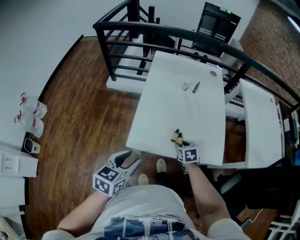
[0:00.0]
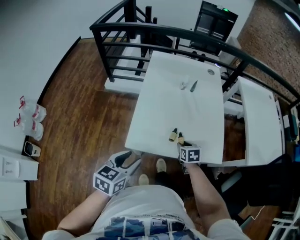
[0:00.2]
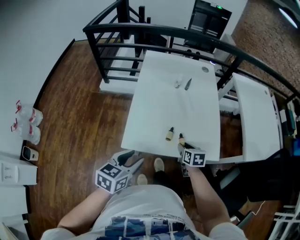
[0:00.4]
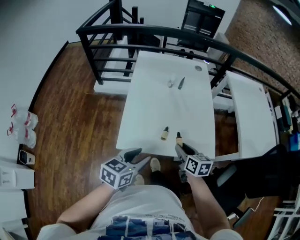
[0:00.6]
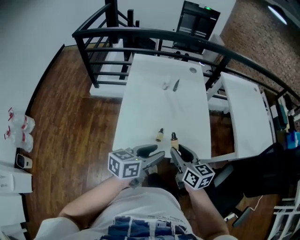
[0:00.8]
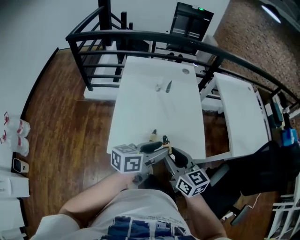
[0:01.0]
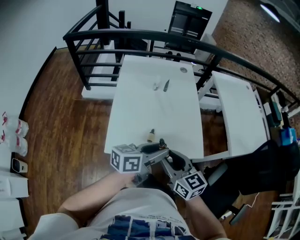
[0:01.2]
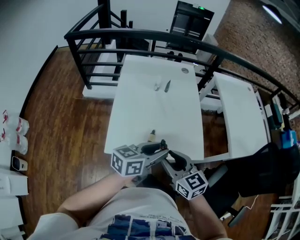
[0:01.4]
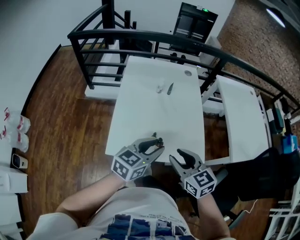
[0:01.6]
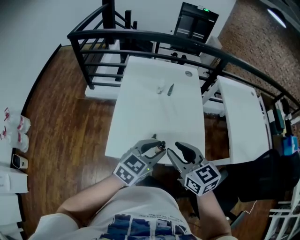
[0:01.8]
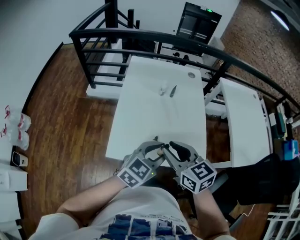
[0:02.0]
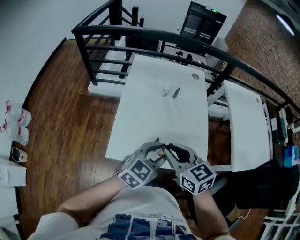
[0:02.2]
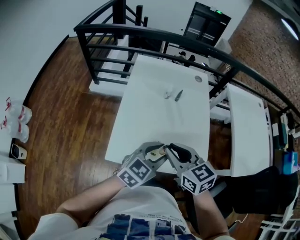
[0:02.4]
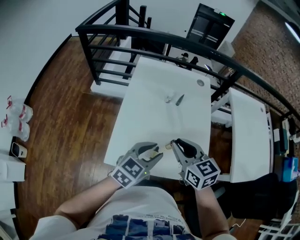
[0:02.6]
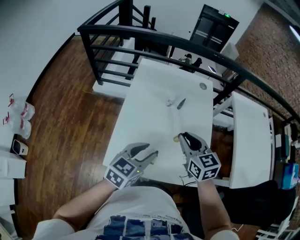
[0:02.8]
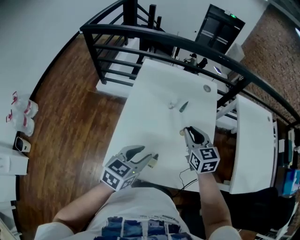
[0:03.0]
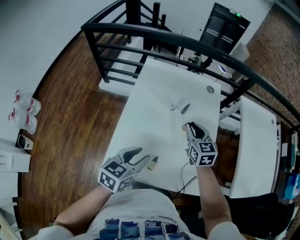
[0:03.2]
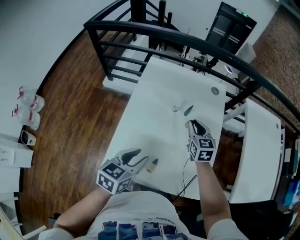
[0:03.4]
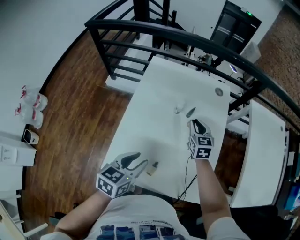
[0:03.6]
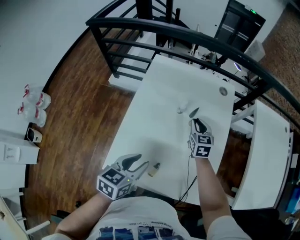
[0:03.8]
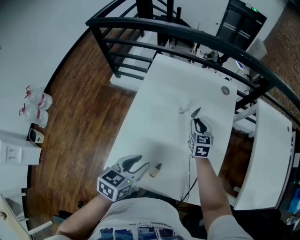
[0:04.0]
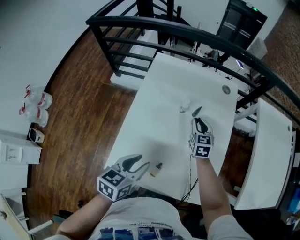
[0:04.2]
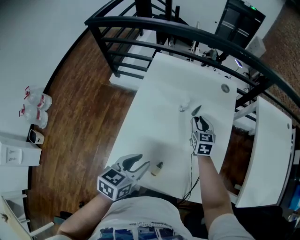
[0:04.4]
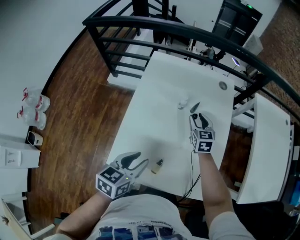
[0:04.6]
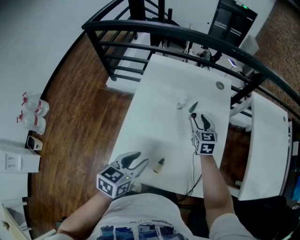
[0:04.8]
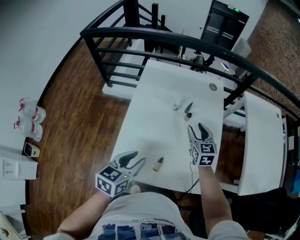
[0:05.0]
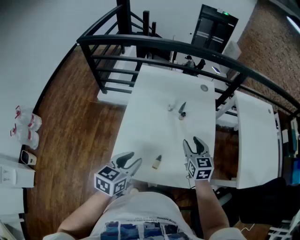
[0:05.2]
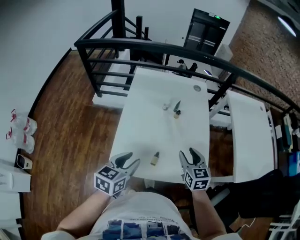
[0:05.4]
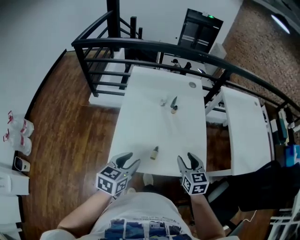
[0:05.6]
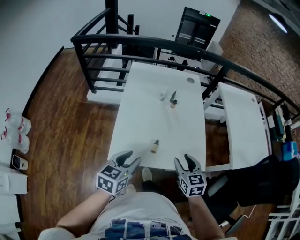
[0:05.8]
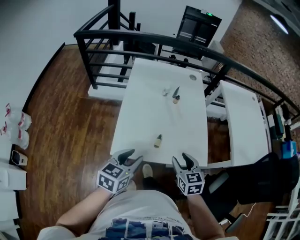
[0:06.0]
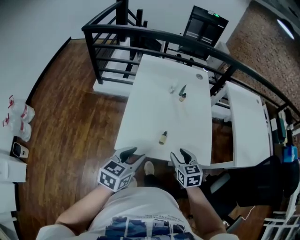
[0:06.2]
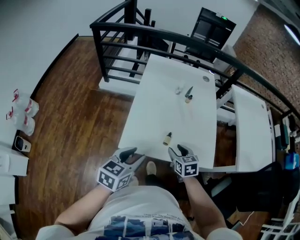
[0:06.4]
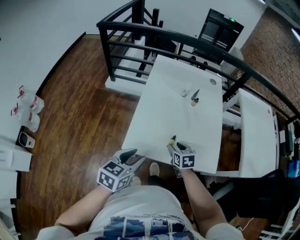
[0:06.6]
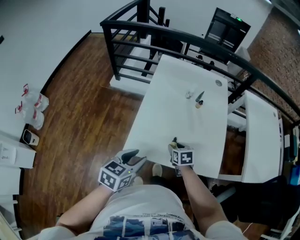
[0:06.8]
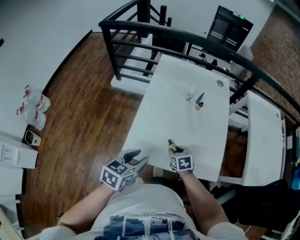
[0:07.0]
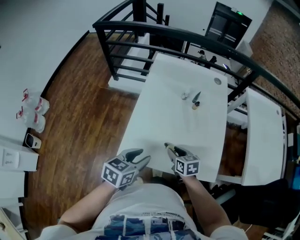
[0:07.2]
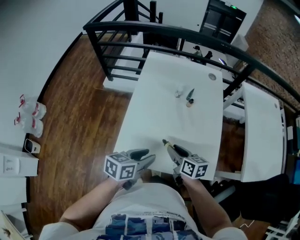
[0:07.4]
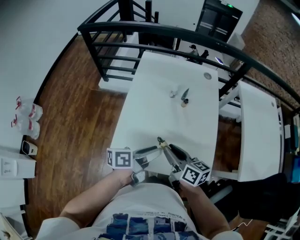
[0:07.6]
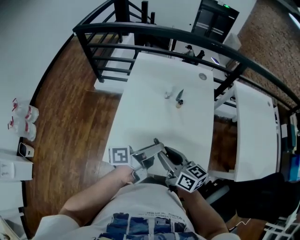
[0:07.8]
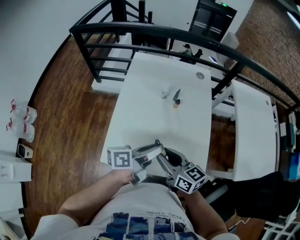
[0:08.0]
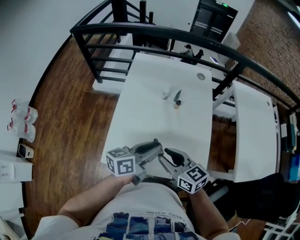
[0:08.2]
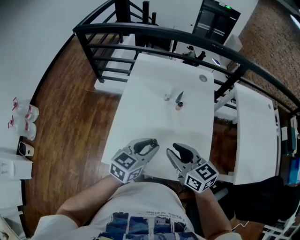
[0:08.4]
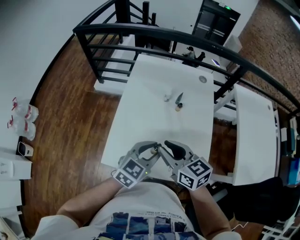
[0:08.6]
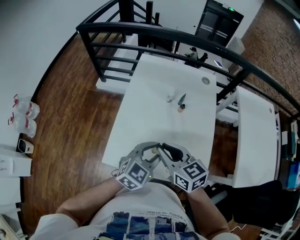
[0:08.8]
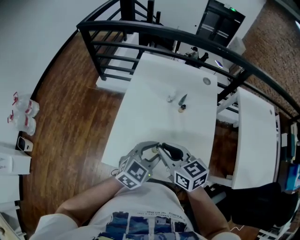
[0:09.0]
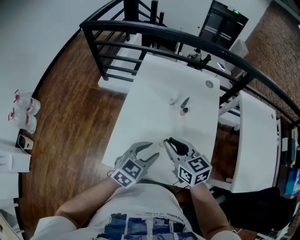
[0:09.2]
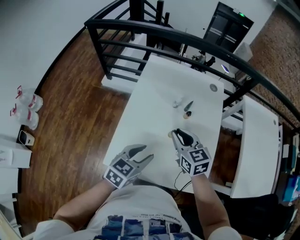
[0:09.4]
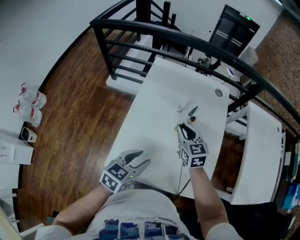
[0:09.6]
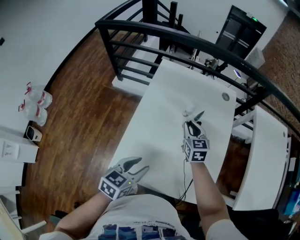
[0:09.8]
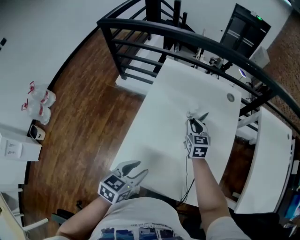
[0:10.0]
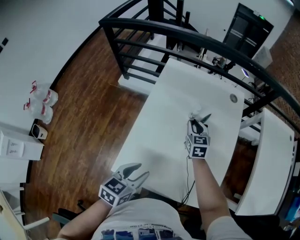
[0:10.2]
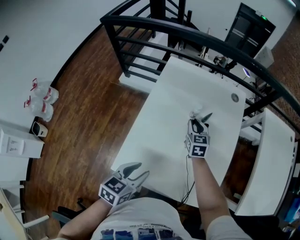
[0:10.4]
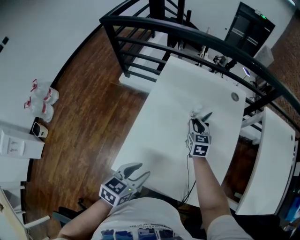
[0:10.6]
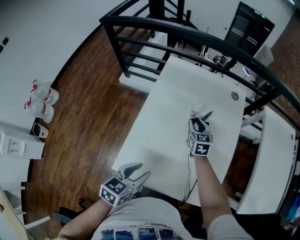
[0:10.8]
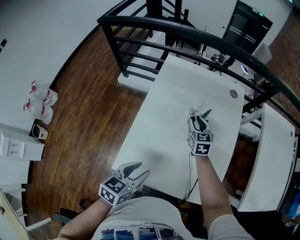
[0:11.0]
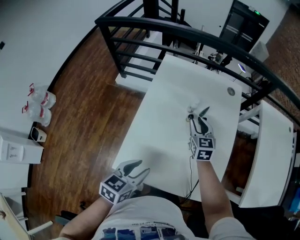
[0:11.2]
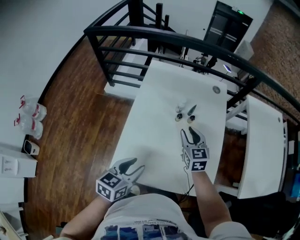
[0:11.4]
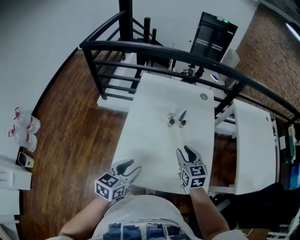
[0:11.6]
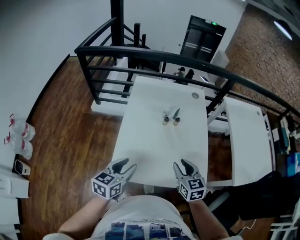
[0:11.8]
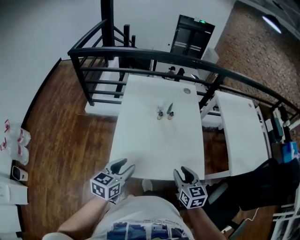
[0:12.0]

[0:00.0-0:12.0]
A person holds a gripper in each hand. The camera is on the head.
0:00.0 to 0:01.6: The right gripper goes some 25 cm upward, and swivels about 30 degrees; the left gripper shifts some 20 cm to the right and forward, and turns by roughly 30 degrees.
0:01.6 to 0:03.0: The left gripper is displaced forward and to the left by approximately 15 cm. Meanwhile the right gripper travels forward by about 30 cm.
0:03.0 to 0:04.4: The left gripper changes place by about 5 cm. The right gripper is displaced forward and downward by approximately 20 cm.
0:04.4 to 0:06.0: The right gripper heads backward, covering roughly 40 cm, while the left gripper travels backward by roughly 20 cm.
0:06.0 to 0:07.6: The right gripper heads forward, covering approximately 15 cm, moves about 15 cm downward and comes back, and swivels some 50 degrees; the left gripper shifts approximately 15 cm forward and to the right, and rolls counterclockwise, seen from behind, by about 50 degrees.
0:07.6 to 0:09.0: The left gripper shifts by approximately 5 cm, and rolls clockwise, seen from behind, by approximately 70 degrees. Meanwhile the right gripper shifts by some 5 cm, and turns by approximately 30 degrees.
0:09.0 to 0:10.4: The left gripper moves to the left, some 10 cm, and changes its angle by approximately 30 degrees. Meanwhile the right gripper moves forward and downward, about 30 cm, and turns by approximately 30 degrees.
0:10.4 to 0:12.0: The right gripper shifts approximately 40 cm backward, and opens; the left gripper moves backward and upward, roughly 10 cm.

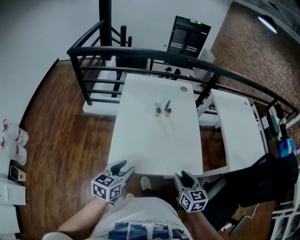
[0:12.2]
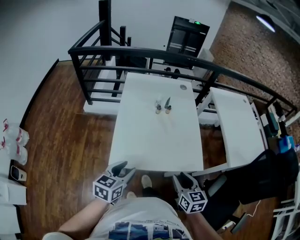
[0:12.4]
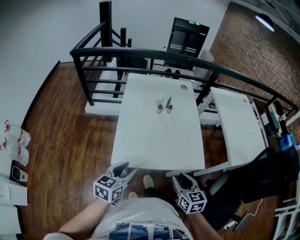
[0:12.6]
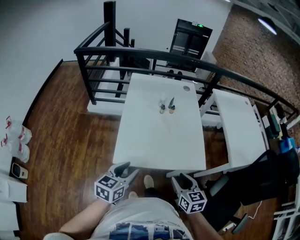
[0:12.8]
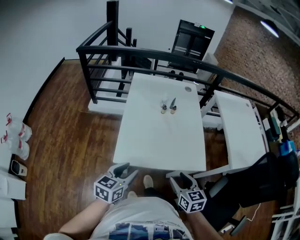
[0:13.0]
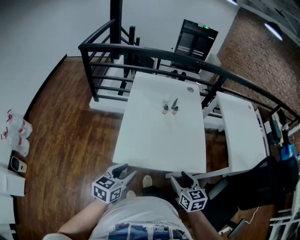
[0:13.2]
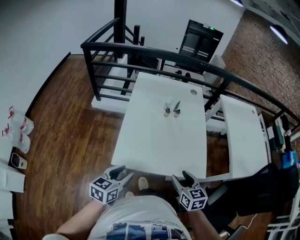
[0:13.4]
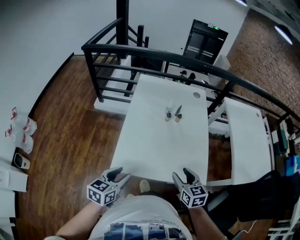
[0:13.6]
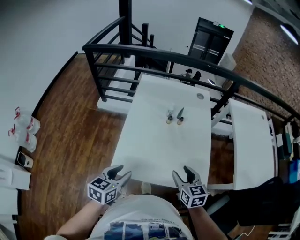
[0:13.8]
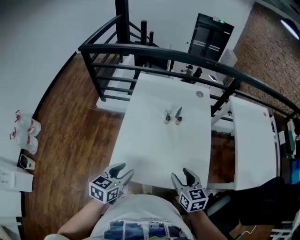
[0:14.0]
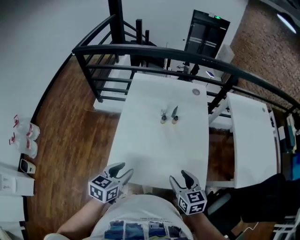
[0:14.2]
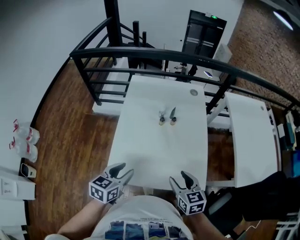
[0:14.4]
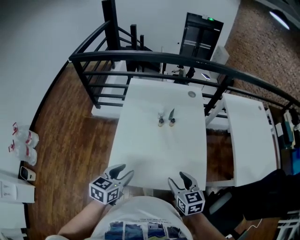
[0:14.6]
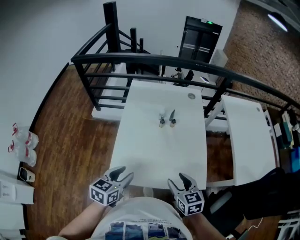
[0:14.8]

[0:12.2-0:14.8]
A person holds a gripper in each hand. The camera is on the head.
0:12.2 to 0:13.4: The left gripper moves approximately 5 cm.
0:13.4 to 0:14.8: Both grippers move forward, about 10 cm.

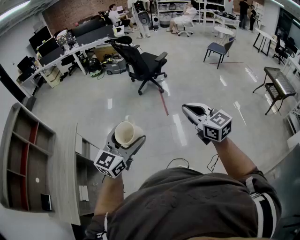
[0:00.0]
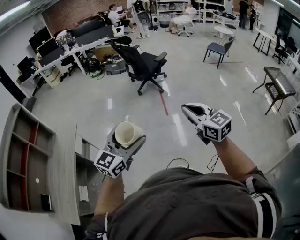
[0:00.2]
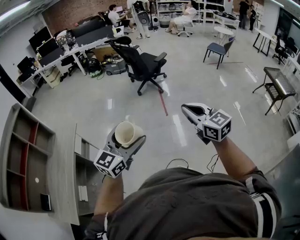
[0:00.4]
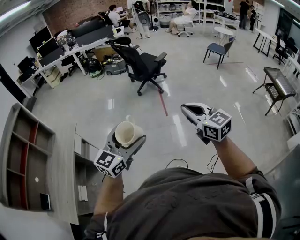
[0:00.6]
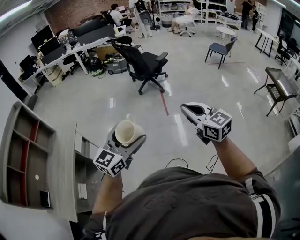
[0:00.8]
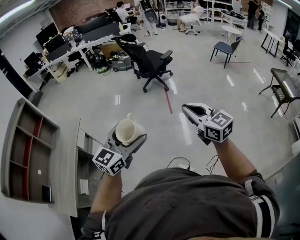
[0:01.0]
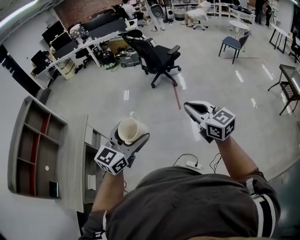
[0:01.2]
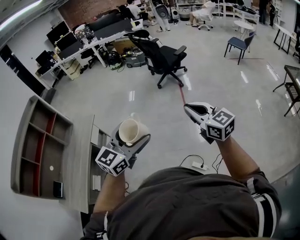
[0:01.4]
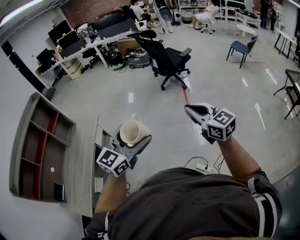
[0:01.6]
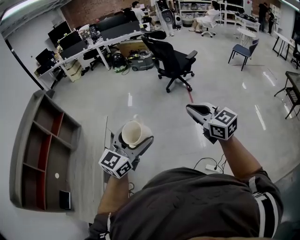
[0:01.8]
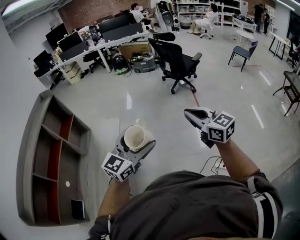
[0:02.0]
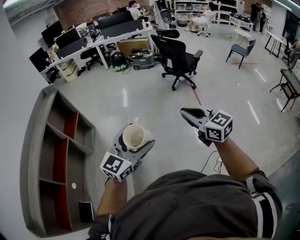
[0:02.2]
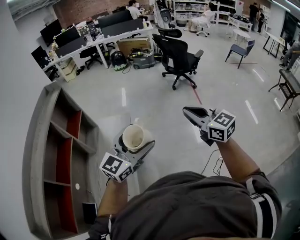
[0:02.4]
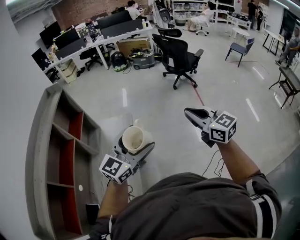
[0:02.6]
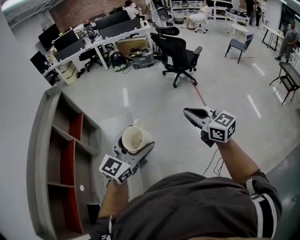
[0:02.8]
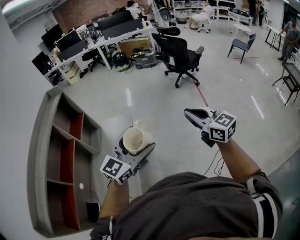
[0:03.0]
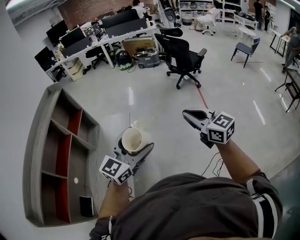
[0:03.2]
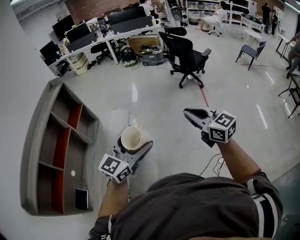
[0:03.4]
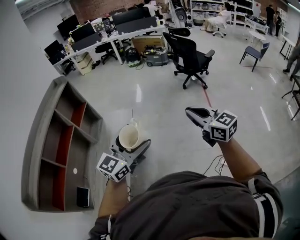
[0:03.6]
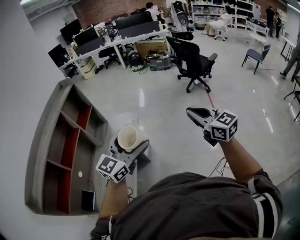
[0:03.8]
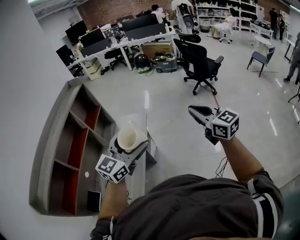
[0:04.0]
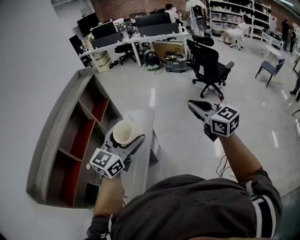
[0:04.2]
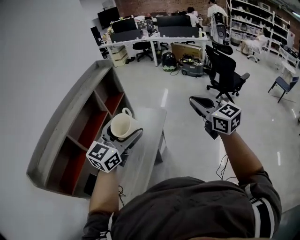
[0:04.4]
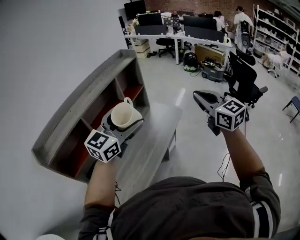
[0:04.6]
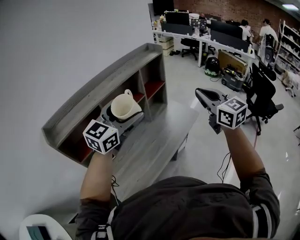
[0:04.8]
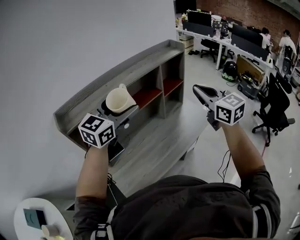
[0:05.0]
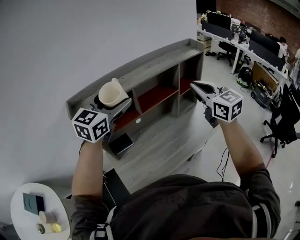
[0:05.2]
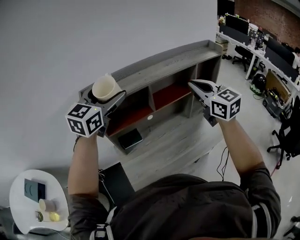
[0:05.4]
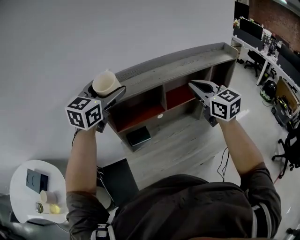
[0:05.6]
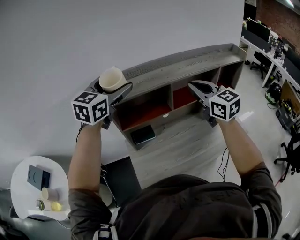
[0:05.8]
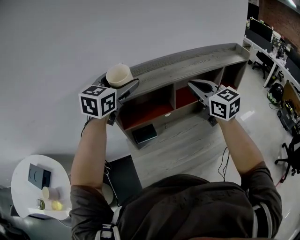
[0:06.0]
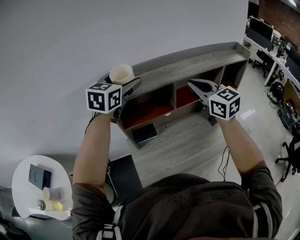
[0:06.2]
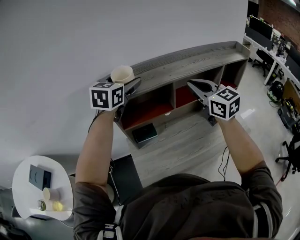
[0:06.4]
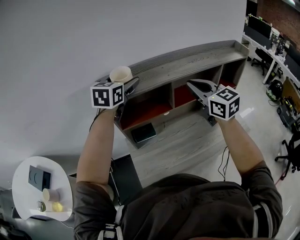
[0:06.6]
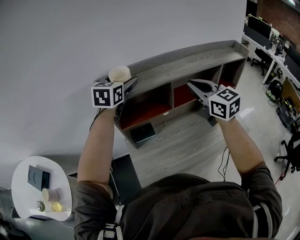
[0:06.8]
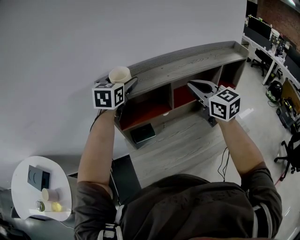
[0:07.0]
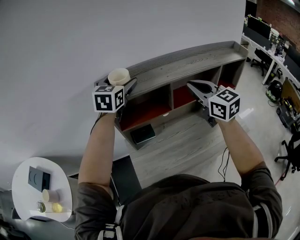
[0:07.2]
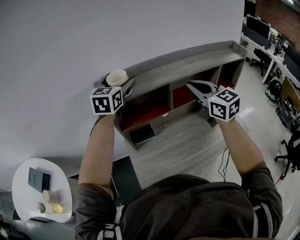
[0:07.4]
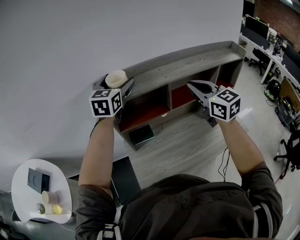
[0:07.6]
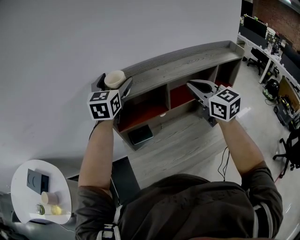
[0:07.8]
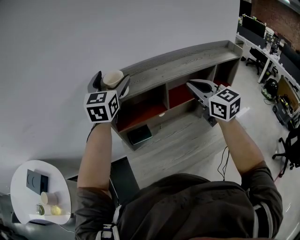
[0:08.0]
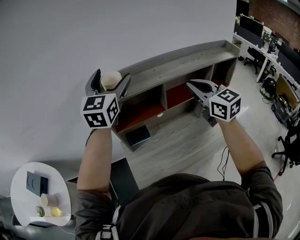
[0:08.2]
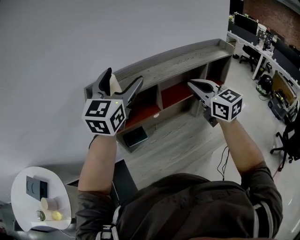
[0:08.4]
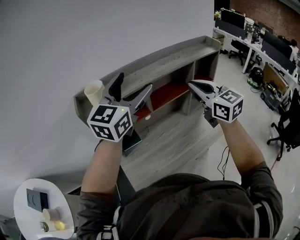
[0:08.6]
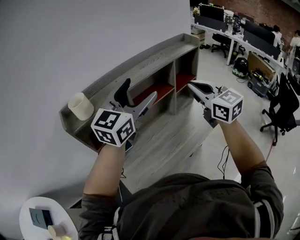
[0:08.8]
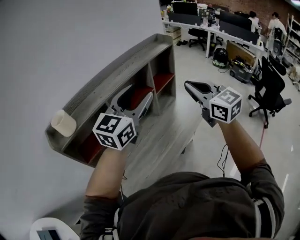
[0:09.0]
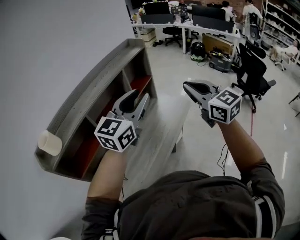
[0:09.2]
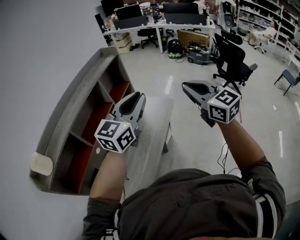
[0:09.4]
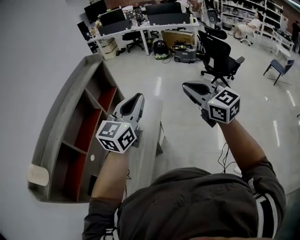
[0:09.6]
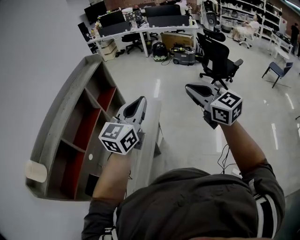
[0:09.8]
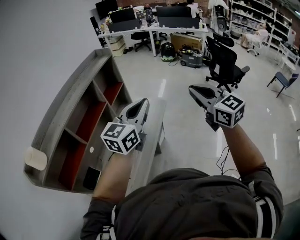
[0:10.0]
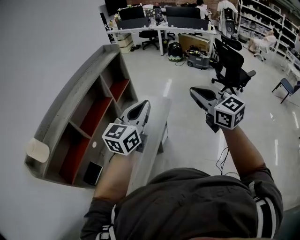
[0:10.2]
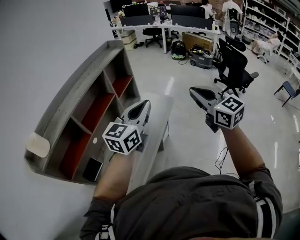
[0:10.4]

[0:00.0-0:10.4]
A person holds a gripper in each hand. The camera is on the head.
0:00.0 to 0:01.4: There are only small adjustments of the grippers.
0:01.4 to 0:03.0: The two grippers travel together, to the left, roughly 50 cm.
0:03.0 to 0:04.4: The left gripper heads to the left, covering roughly 20 cm, and changes its angle by about 30 degrees. Meanwhile the right gripper is displaced to the left and upward by about 15 cm.
0:04.4 to 0:06.0: Both grippers are carried some 50 cm. The right gripper swivels some 50 degrees. The left gripper rotates approximately 60 degrees.
0:06.0 to 0:07.4: The left gripper shifts roughly 5 cm forward.
0:07.4 to 0:09.0: The left gripper reaches some 10 cm upward, then returns, changes its angle by some 50 degrees, and closes its fingers; the right gripper moves approximately 25 cm, and turns by approximately 30 degrees.
0:09.0 to 0:10.4: The right gripper ends up some 20 cm from where it was. The left gripper moves about 20 cm, changes its angle by roughly 20 degrees, and closes up.
